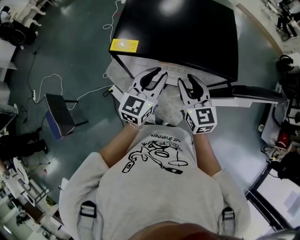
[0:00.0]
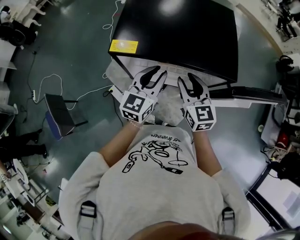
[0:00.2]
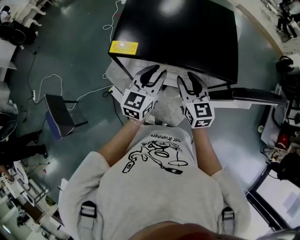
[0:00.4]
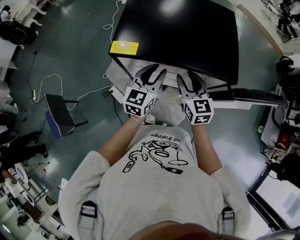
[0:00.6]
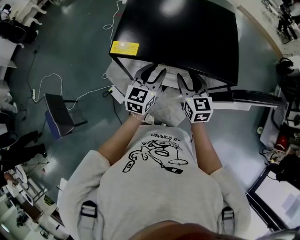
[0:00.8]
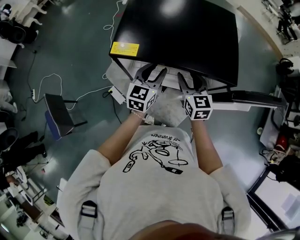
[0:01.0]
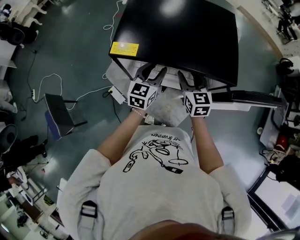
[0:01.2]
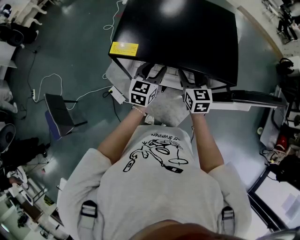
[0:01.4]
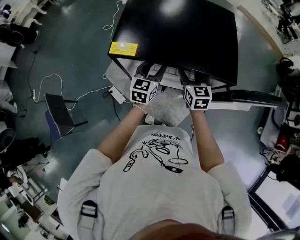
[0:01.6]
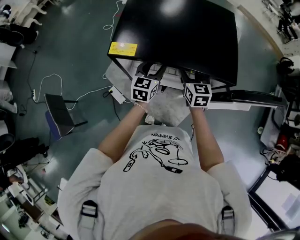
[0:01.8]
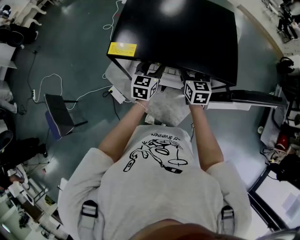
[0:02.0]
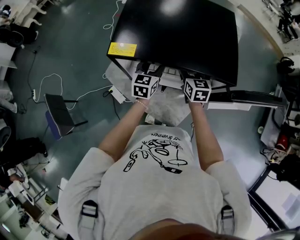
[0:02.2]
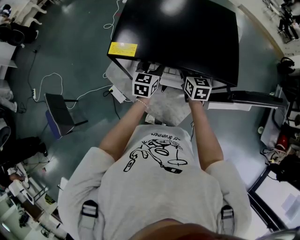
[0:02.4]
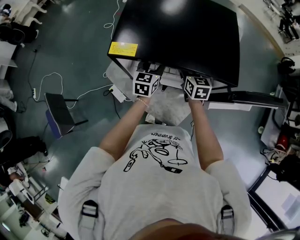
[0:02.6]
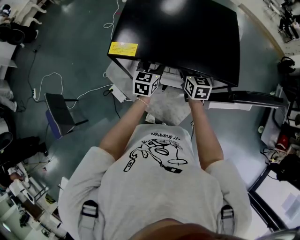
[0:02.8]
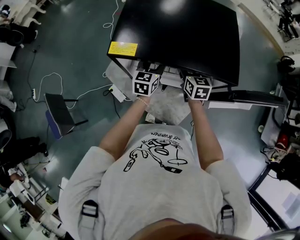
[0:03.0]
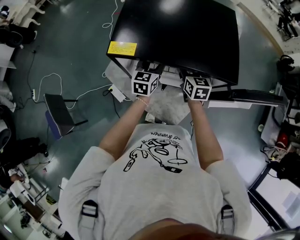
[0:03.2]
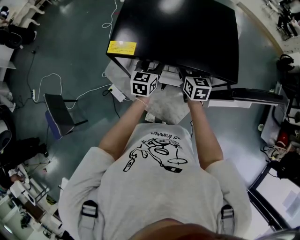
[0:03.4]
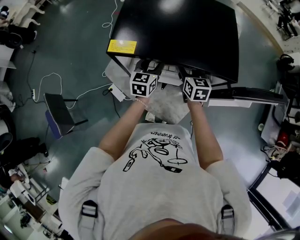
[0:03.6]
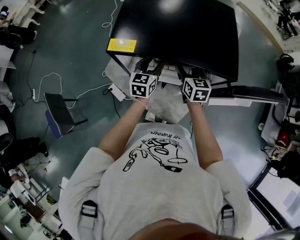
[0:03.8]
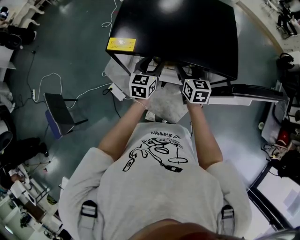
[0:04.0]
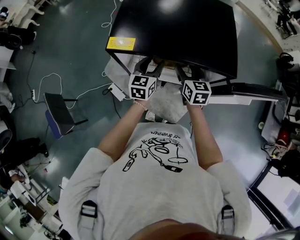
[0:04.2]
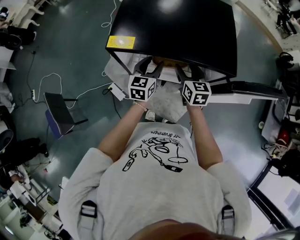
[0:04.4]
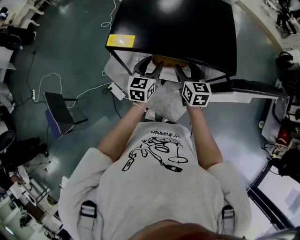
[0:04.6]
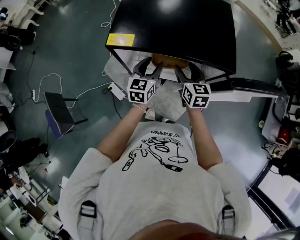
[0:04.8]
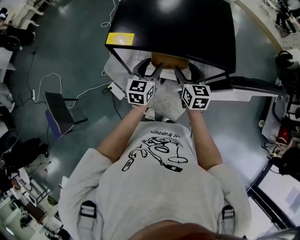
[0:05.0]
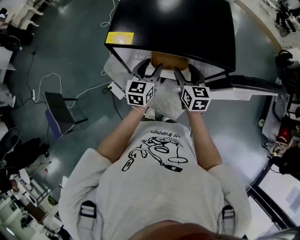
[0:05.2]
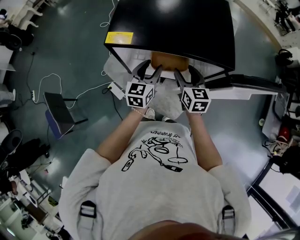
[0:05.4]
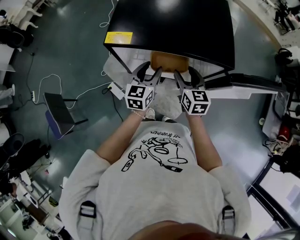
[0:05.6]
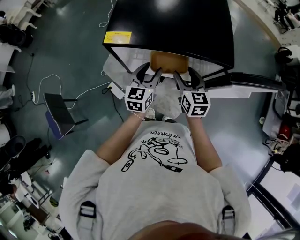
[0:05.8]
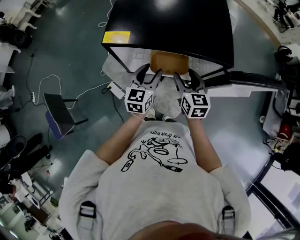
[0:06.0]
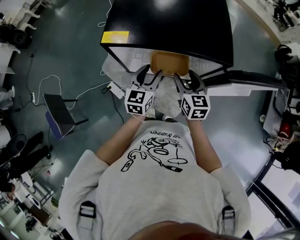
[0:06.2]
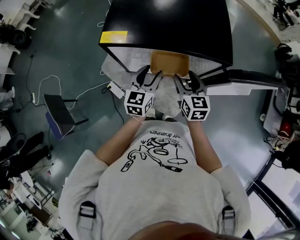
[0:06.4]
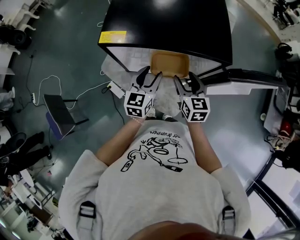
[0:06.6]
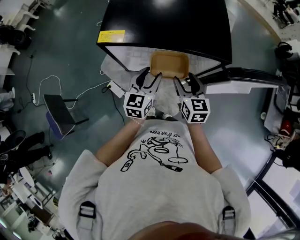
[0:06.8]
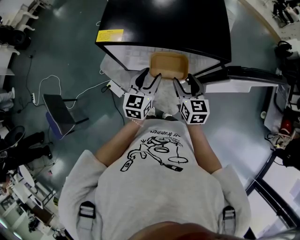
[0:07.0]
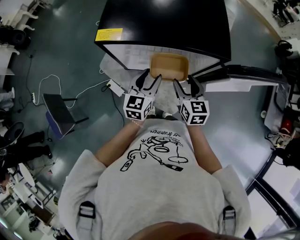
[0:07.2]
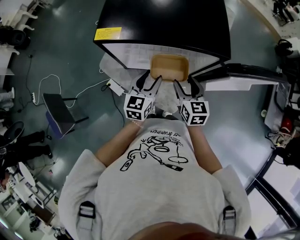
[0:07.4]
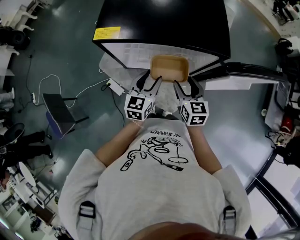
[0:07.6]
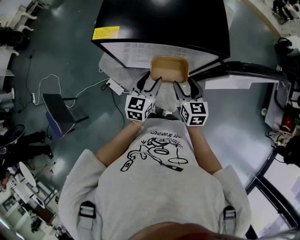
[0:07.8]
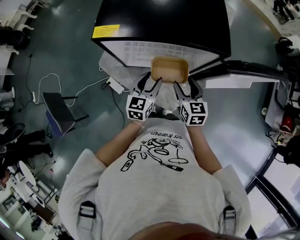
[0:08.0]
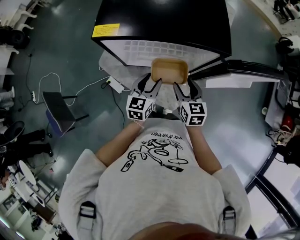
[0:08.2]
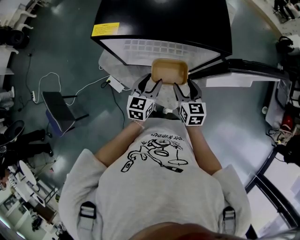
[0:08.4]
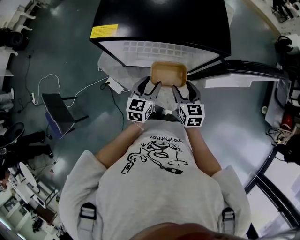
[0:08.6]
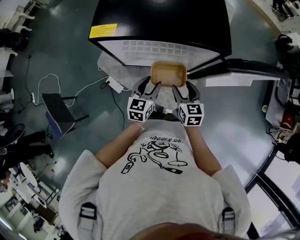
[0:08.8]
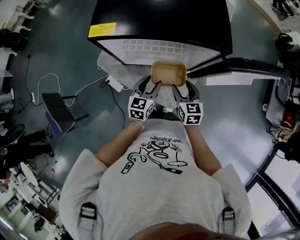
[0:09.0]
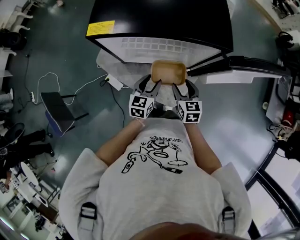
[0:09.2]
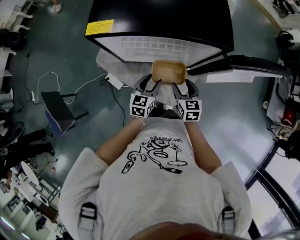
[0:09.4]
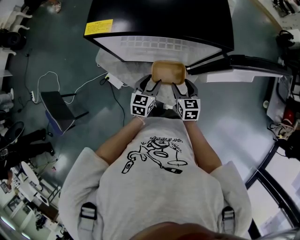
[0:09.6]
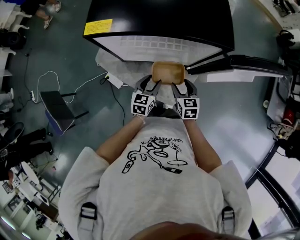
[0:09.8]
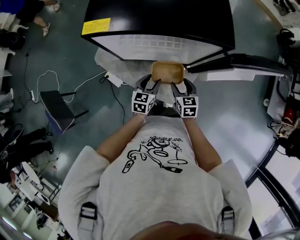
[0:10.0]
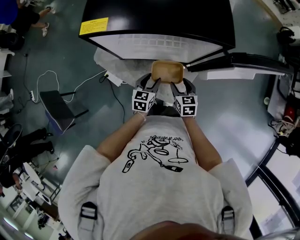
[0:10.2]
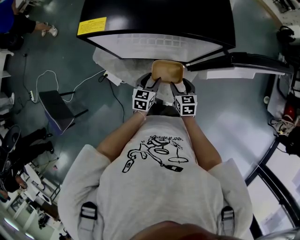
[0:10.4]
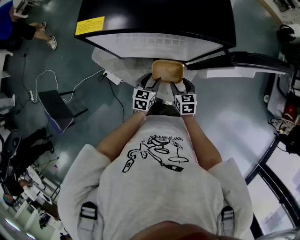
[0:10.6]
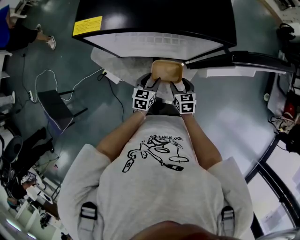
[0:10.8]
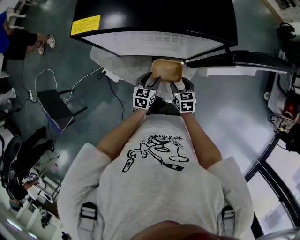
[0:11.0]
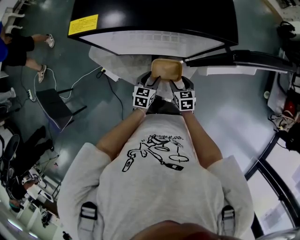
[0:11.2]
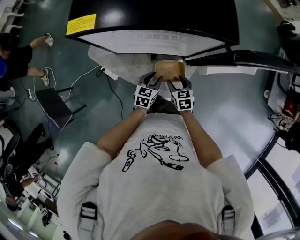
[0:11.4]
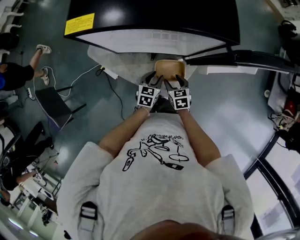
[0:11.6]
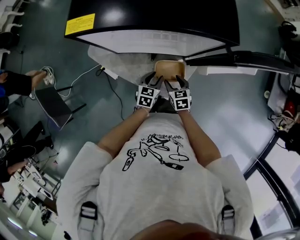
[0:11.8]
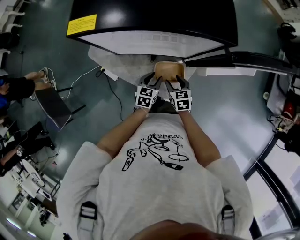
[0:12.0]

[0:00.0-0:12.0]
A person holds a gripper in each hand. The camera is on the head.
0:00.0 to 0:01.6: The left gripper travels downward and forward by approximately 15 cm, and opens. Meanwhile the right gripper goes roughly 10 cm forward and downward, and opens its fingers.
0:01.6 to 0:04.4: The grippers make only small movements.
0:04.4 to 0:06.0: Both grippers move backward, approximately 5 cm.
0:06.0 to 0:07.6: The right gripper travels backward by approximately 5 cm, while the left gripper moves some 5 cm.
0:07.6 to 0:09.0: Both grippers move downward, approximately 5 cm.
0:09.0 to 0:10.4: Both grippers travel together downward, about 10 cm.
0:10.4 to 0:12.0: The left gripper ends up some 5 cm from where it was.

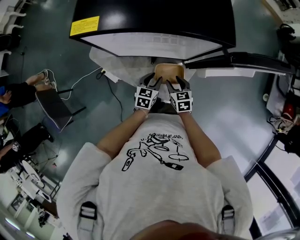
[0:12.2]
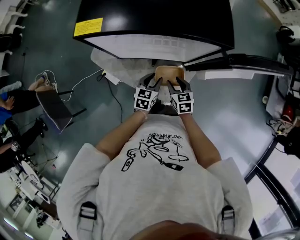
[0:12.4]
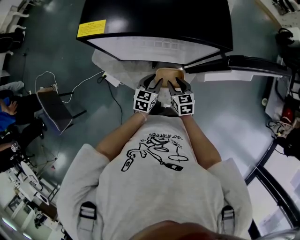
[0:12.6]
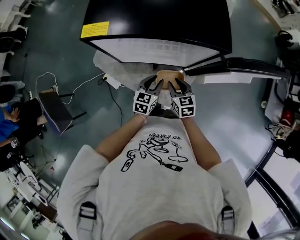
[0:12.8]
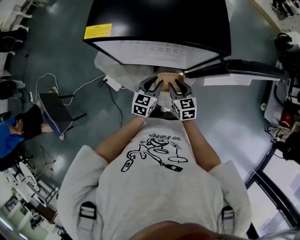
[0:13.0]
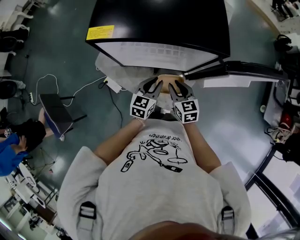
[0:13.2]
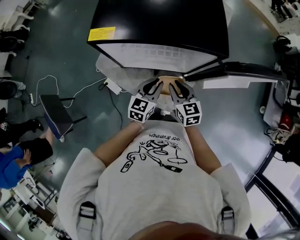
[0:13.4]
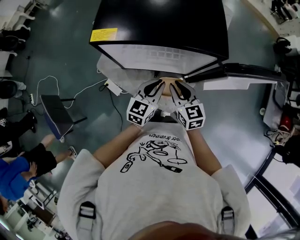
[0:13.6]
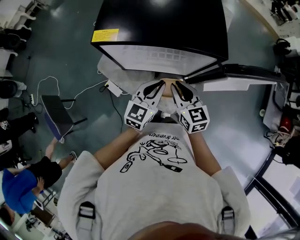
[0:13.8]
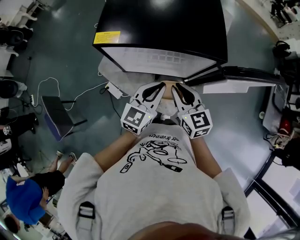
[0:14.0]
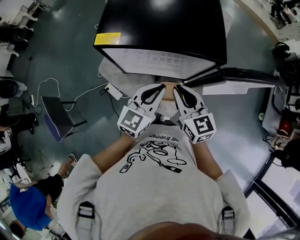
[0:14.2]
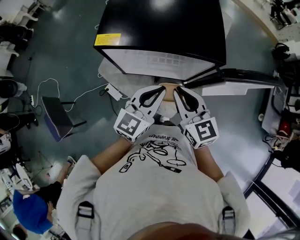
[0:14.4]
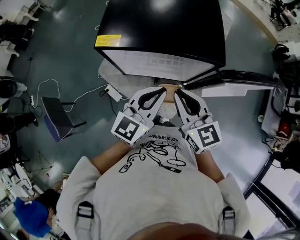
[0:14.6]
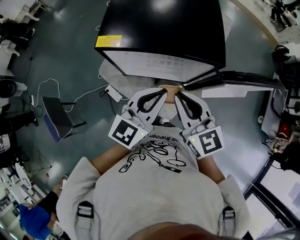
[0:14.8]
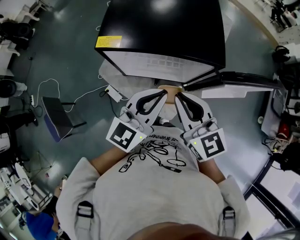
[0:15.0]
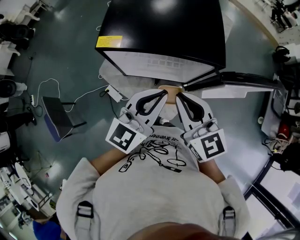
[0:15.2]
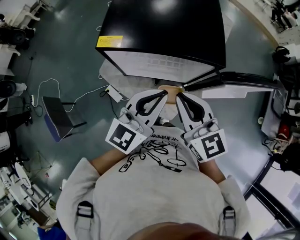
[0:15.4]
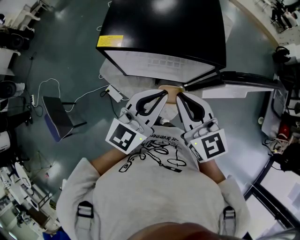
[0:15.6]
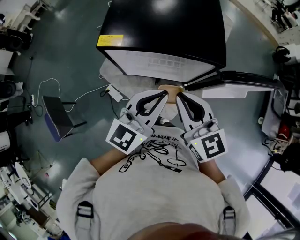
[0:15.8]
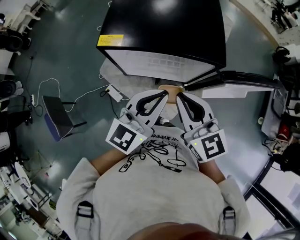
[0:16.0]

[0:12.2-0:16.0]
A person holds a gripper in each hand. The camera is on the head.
0:12.2 to 0:13.4: The two grippers go about 15 cm upward. The right gripper closes. The left gripper closes its fingers.
0:13.4 to 0:14.8: The grippers both shift upward by roughly 20 cm. The left gripper swivels approximately 20 degrees.
0:14.8 to 0:16.0: The grippers make only small movements.

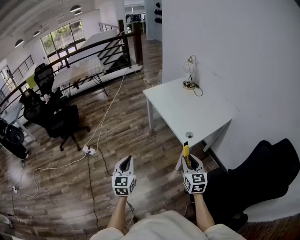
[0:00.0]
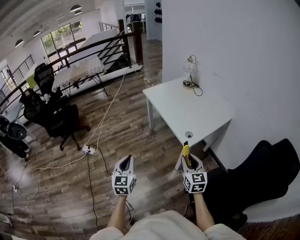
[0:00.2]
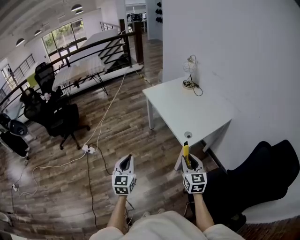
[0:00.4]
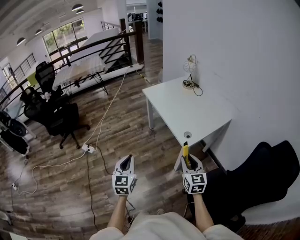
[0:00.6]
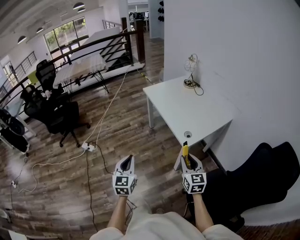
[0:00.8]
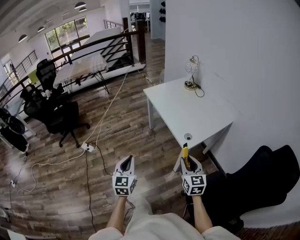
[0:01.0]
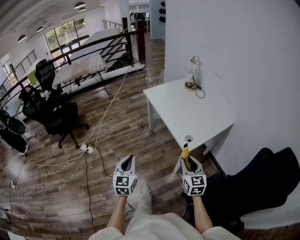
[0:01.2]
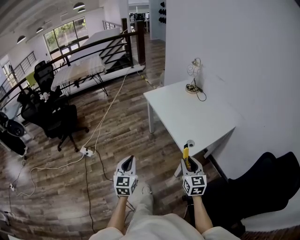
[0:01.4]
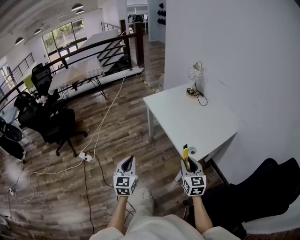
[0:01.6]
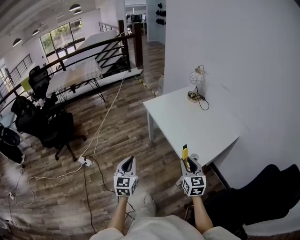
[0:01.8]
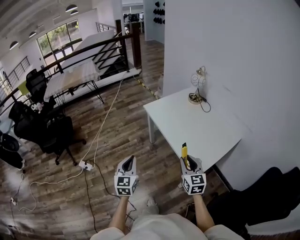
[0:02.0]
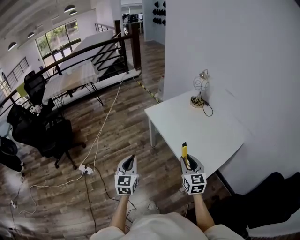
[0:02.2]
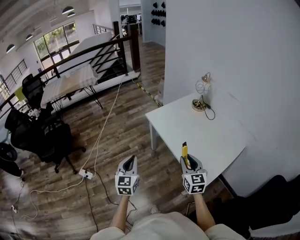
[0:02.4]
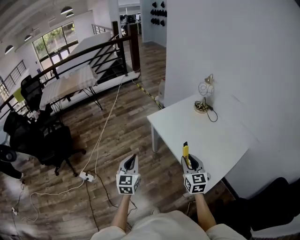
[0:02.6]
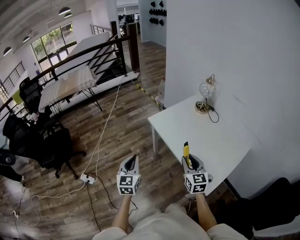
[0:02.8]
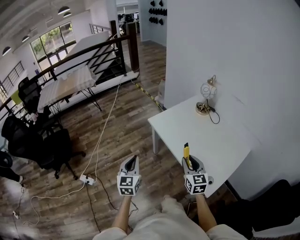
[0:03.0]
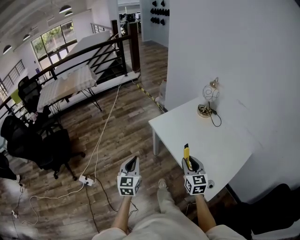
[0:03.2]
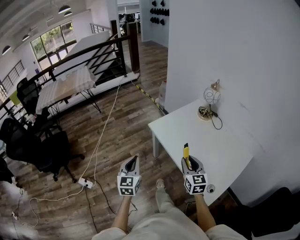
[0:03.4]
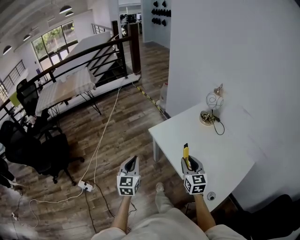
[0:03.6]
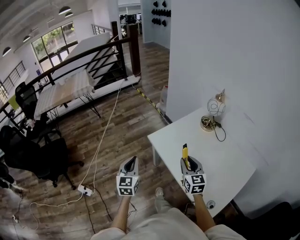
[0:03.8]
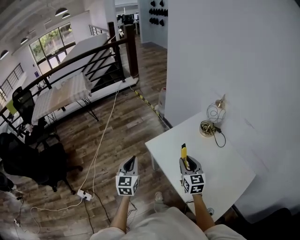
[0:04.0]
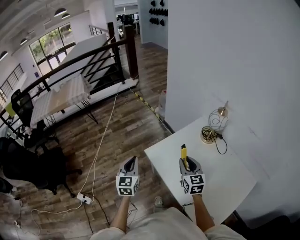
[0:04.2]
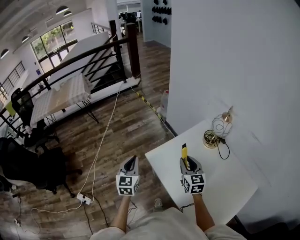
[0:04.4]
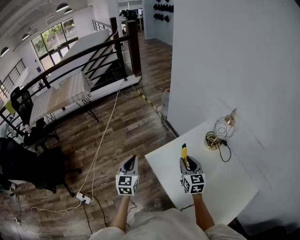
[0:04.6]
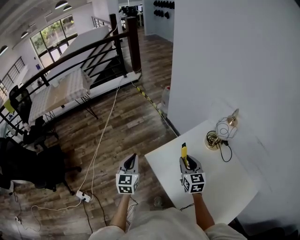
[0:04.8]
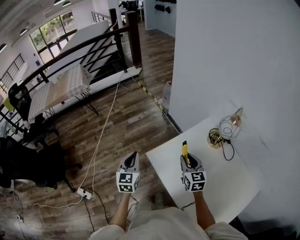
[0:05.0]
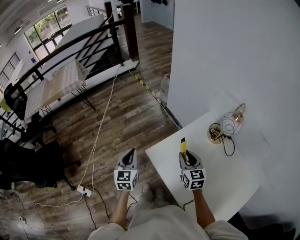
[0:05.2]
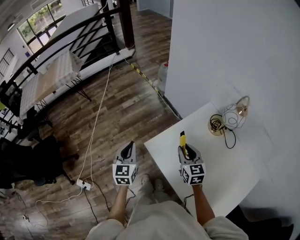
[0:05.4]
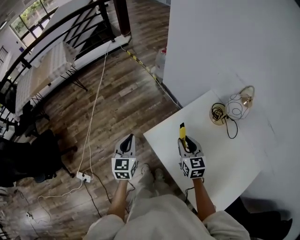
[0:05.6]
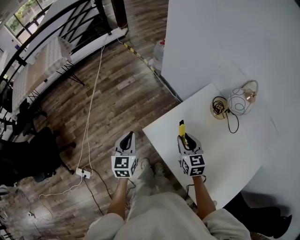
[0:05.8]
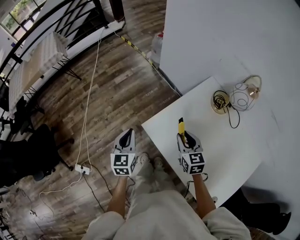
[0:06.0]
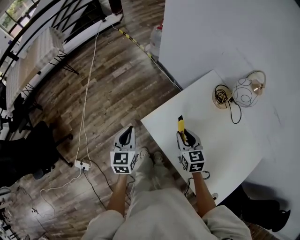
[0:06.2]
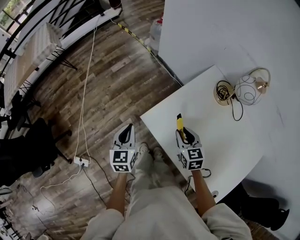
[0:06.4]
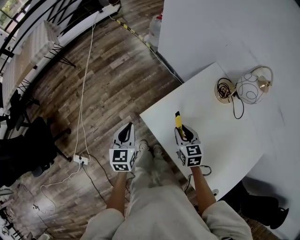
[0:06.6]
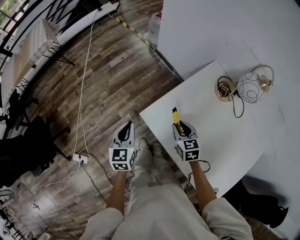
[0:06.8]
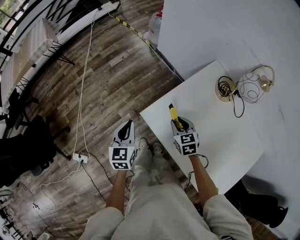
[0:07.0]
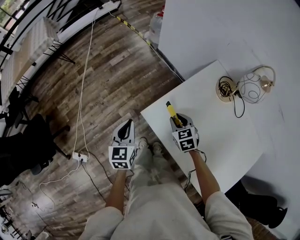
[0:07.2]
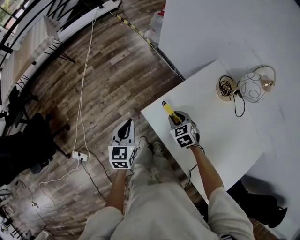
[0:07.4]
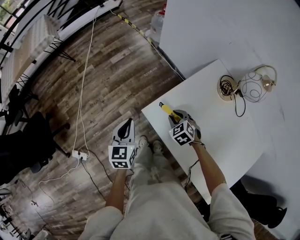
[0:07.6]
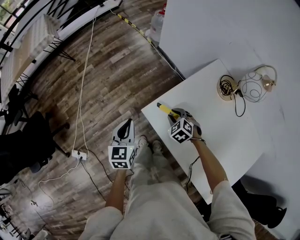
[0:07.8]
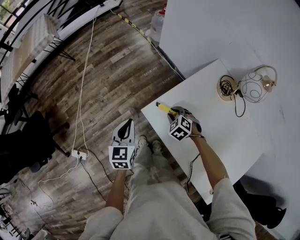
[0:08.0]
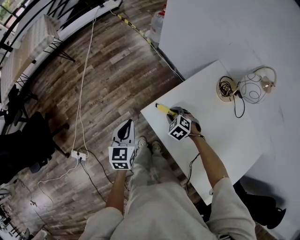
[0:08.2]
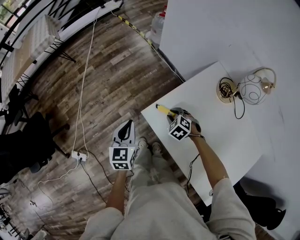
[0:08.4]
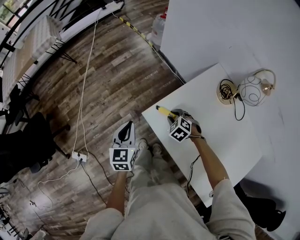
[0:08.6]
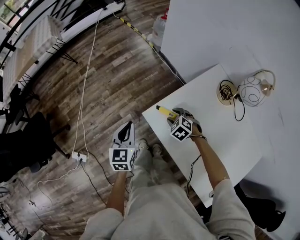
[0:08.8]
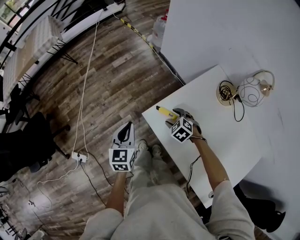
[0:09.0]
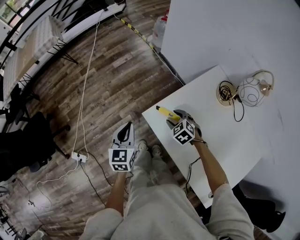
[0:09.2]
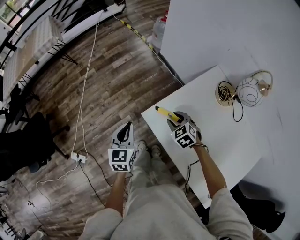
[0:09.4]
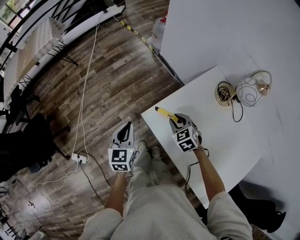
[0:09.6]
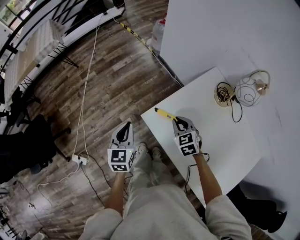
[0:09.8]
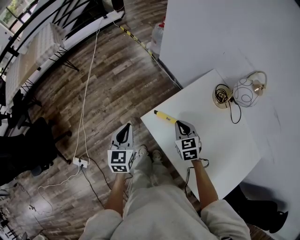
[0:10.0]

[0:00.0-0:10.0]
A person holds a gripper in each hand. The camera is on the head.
0:00.0 to 0:01.4: Both grippers move forward, about 10 cm.
0:01.4 to 0:02.8: The two grippers go about 35 cm forward.
0:02.8 to 0:04.2: The grippers both shift forward by roughly 35 cm.
0:04.2 to 0:05.8: The two grippers go about 20 cm forward and downward.
0:05.8 to 0:07.2: The right gripper heads downward, covering approximately 15 cm, and swivels about 20 degrees. The left gripper travels downward by some 5 cm.
0:07.2 to 0:08.6: The right gripper shifts roughly 5 cm downward, and rotates roughly 40 degrees.
0:08.6 to 0:10.0: The right gripper shifts approximately 10 cm upward, swivels some 40 degrees, and closes.
